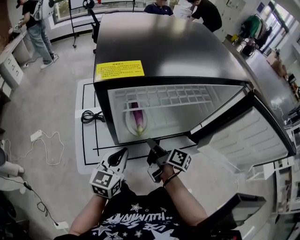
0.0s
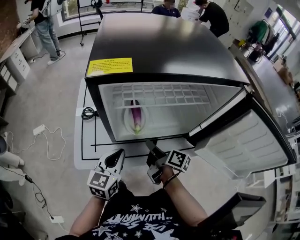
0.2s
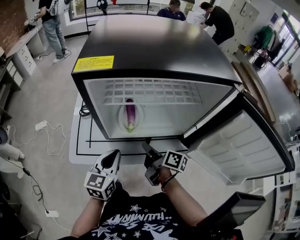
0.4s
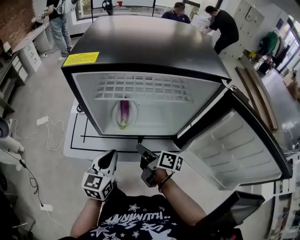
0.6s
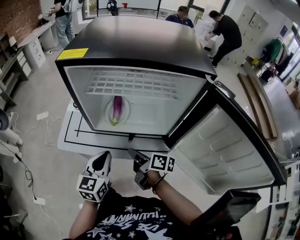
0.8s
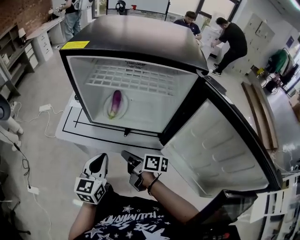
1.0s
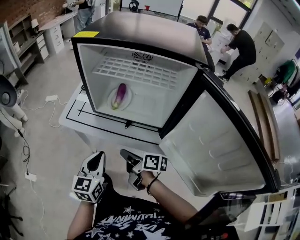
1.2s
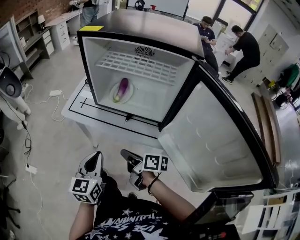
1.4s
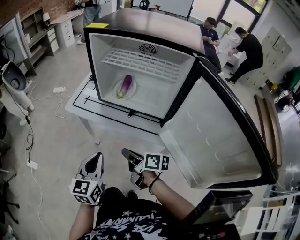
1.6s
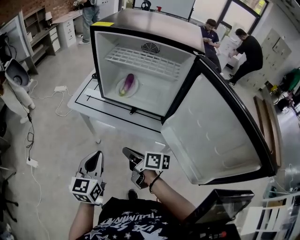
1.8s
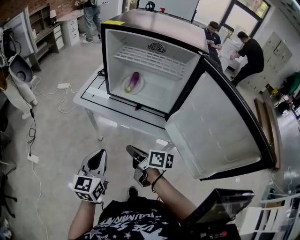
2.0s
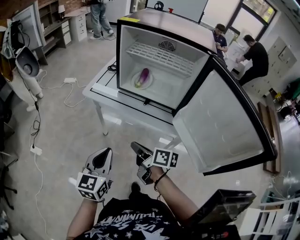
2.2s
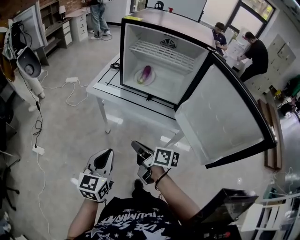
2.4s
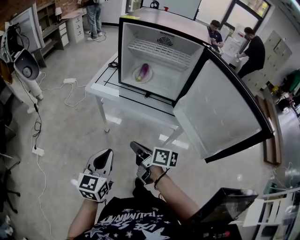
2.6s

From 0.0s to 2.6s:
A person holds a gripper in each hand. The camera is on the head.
From 0.0s to 1.2s: The left gripper ends up roughly 20 cm from where it was, and swivels approximately 40 degrees.
From 1.2s to 2.6s: The left gripper shifts by approximately 25 cm.

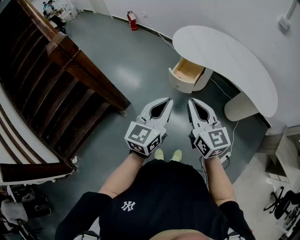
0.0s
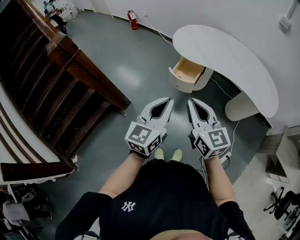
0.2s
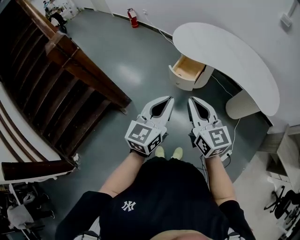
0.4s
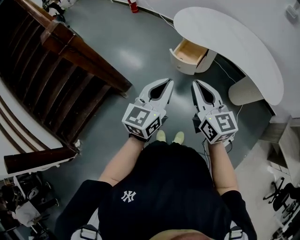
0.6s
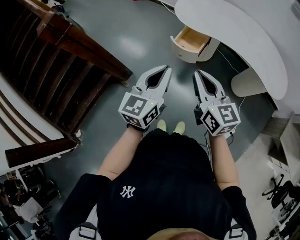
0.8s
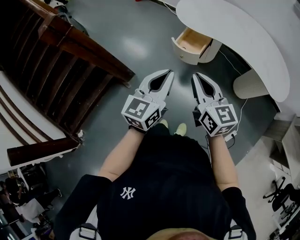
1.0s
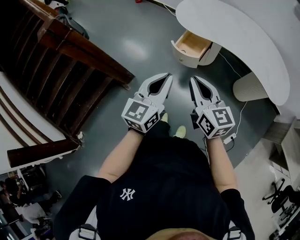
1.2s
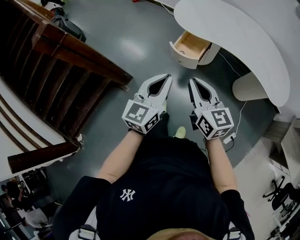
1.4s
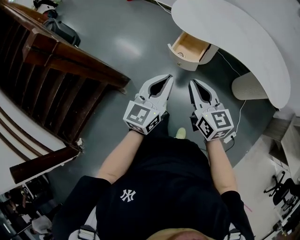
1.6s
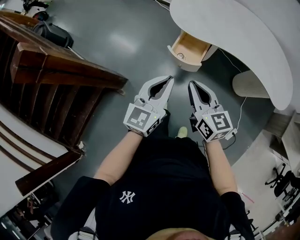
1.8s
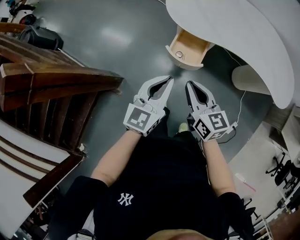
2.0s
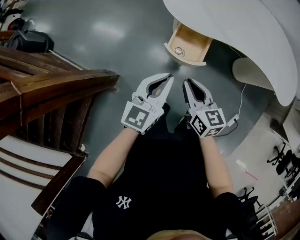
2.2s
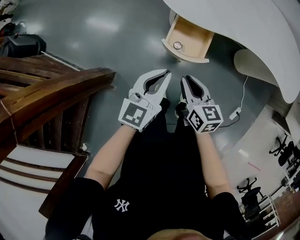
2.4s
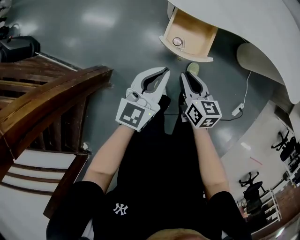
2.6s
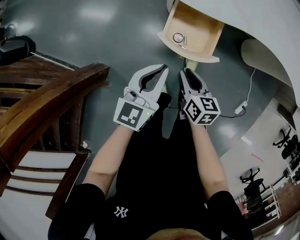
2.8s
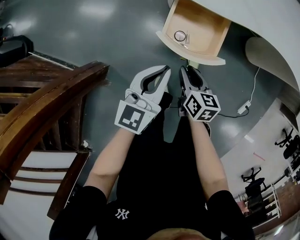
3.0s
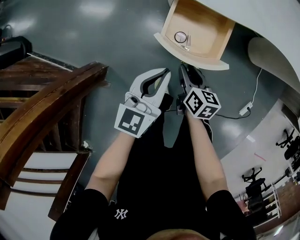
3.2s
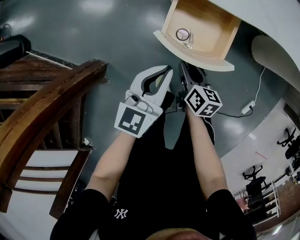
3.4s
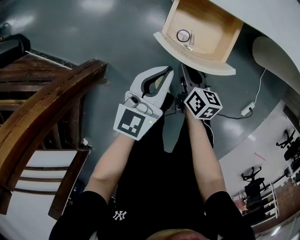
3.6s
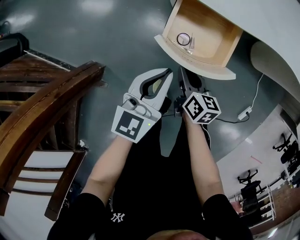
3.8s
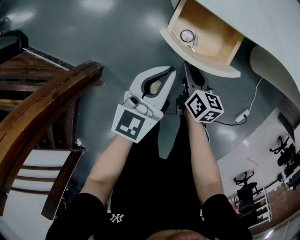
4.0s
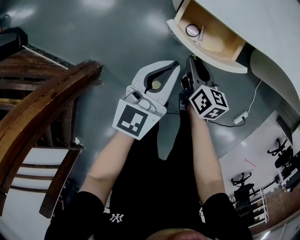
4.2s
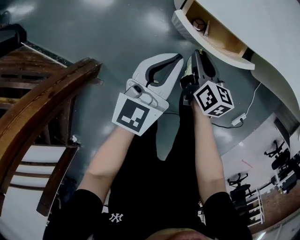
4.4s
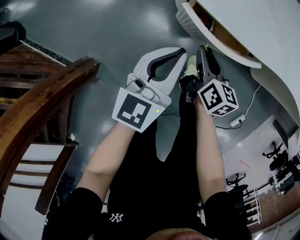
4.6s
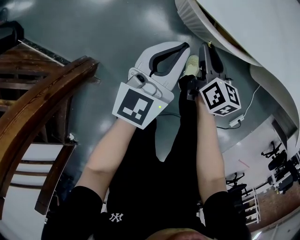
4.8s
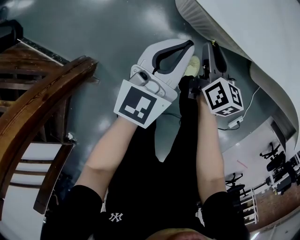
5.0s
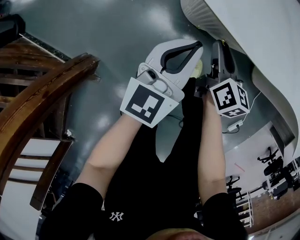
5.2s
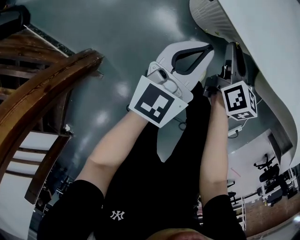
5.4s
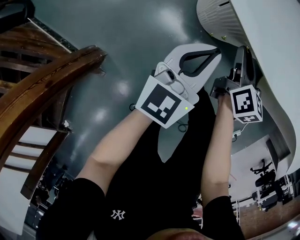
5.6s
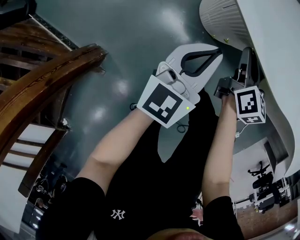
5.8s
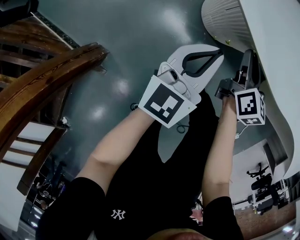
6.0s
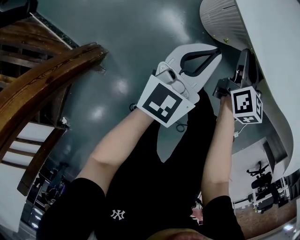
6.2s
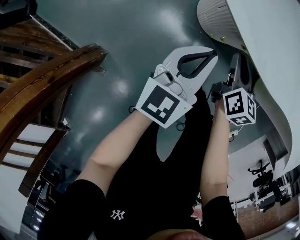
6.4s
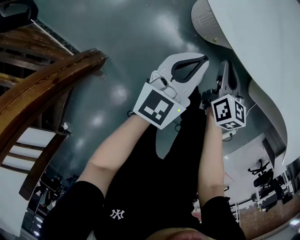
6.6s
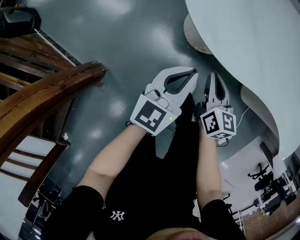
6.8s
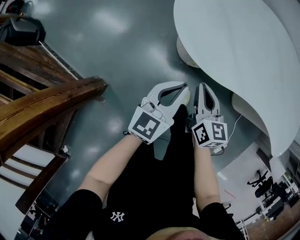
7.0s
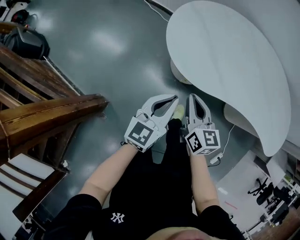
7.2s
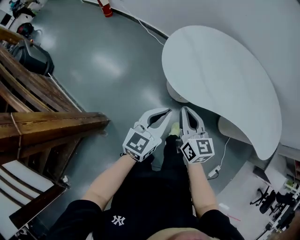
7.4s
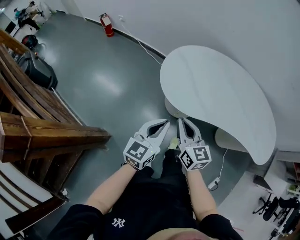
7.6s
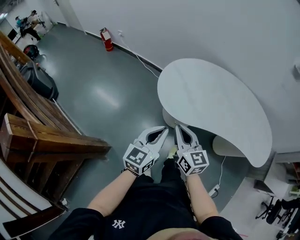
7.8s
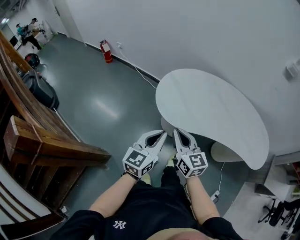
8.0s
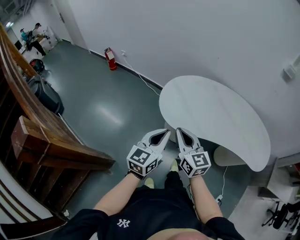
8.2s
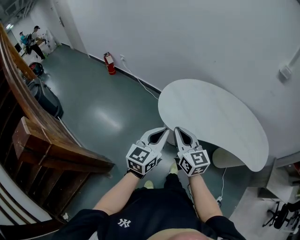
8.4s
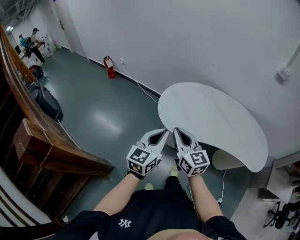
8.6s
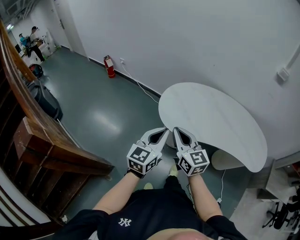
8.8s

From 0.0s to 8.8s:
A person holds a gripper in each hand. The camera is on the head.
From 0.0s to 1.4s: The left gripper goes approximately 10 cm forward and downward, while the right gripper heads downward and forward, covering some 10 cm.
From 1.4s to 3.0s: Both grippers move downward and forward, some 50 cm. The left gripper changes its angle by some 20 degrees, while the right gripper angles its fingers downward, by some 30 degrees, and opens.
From 3.0s to 4.4s: Both grippers travel together forward and downward, some 15 cm.
From 4.4s to 5.8s: The right gripper goes roughly 15 cm forward. Meanwhile the left gripper is displaced forward by roughly 10 cm.
From 5.8s to 7.4s: The left gripper goes about 30 cm upward, while the right gripper travels upward and backward by about 35 cm, changes its angle by approximately 30 degrees, and closes up.
From 7.4s to 8.8s: The grippers both shift upward by approximately 20 cm.

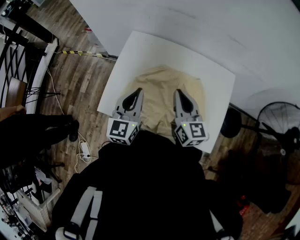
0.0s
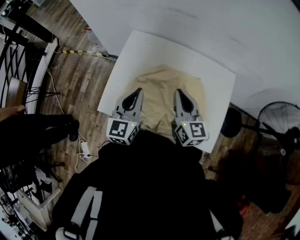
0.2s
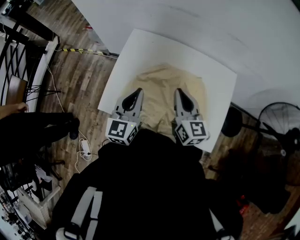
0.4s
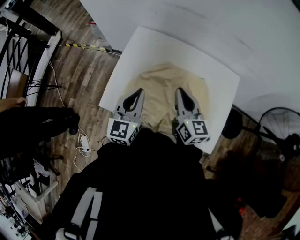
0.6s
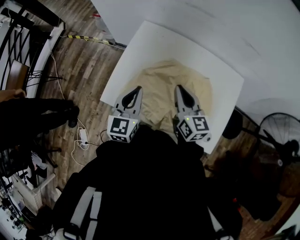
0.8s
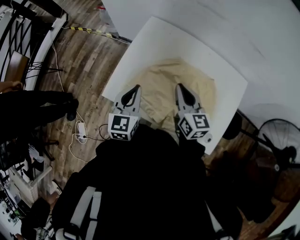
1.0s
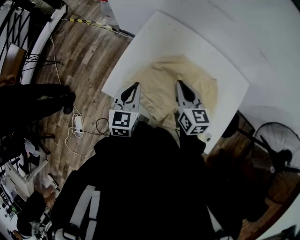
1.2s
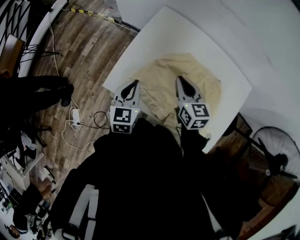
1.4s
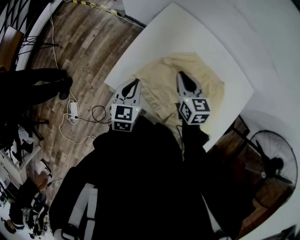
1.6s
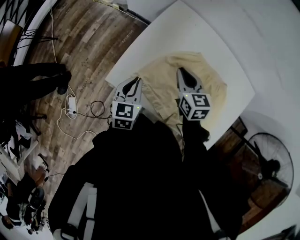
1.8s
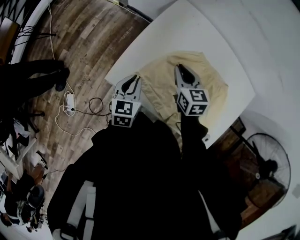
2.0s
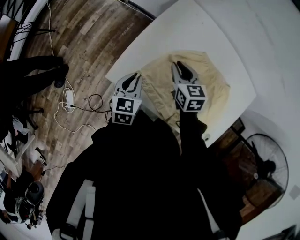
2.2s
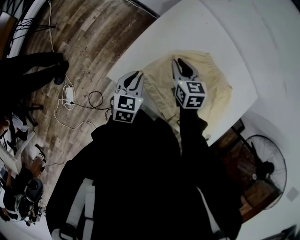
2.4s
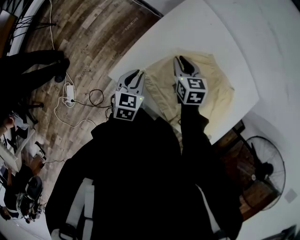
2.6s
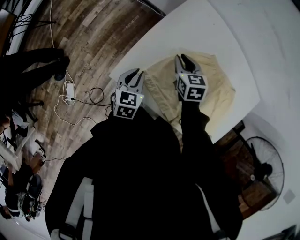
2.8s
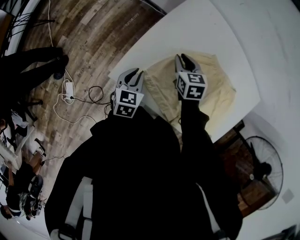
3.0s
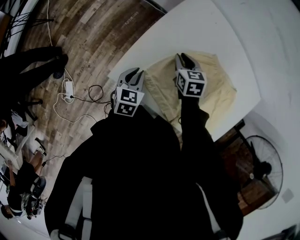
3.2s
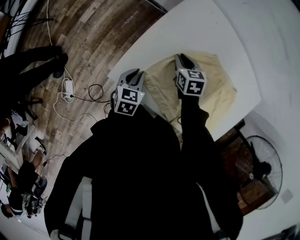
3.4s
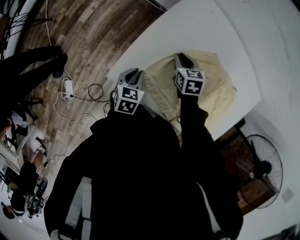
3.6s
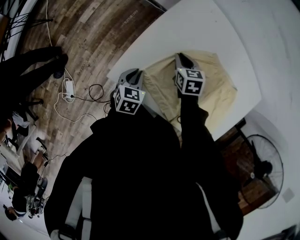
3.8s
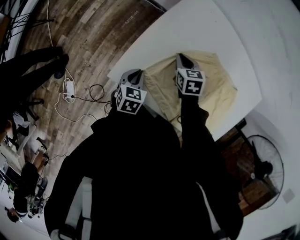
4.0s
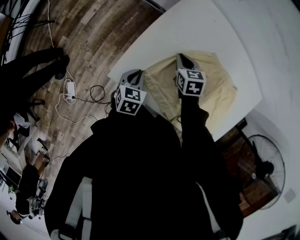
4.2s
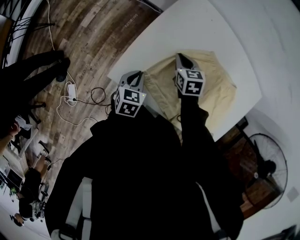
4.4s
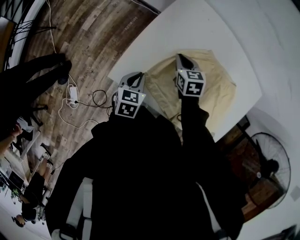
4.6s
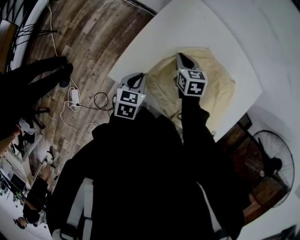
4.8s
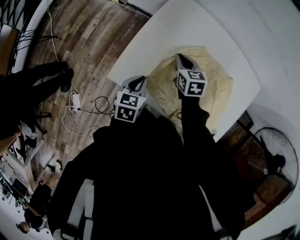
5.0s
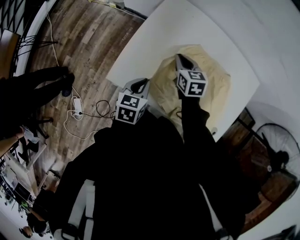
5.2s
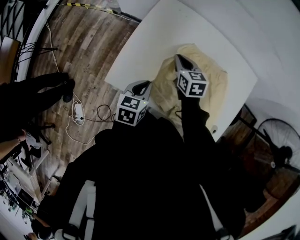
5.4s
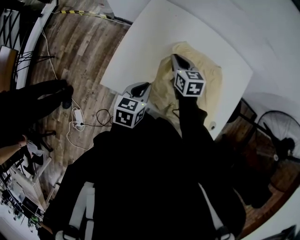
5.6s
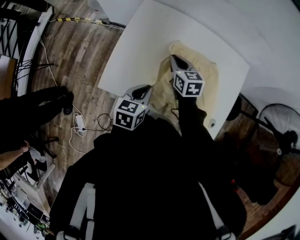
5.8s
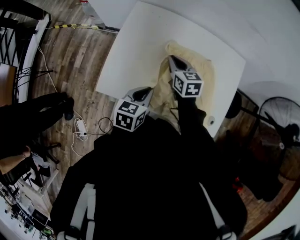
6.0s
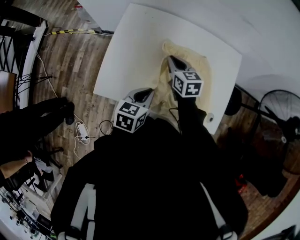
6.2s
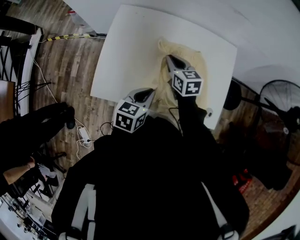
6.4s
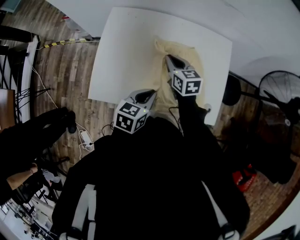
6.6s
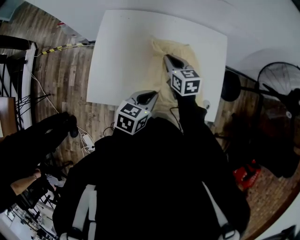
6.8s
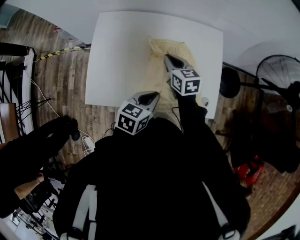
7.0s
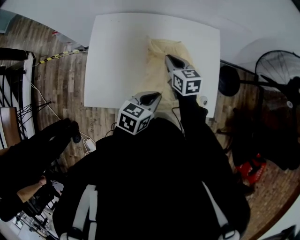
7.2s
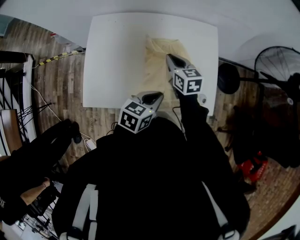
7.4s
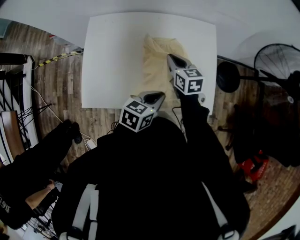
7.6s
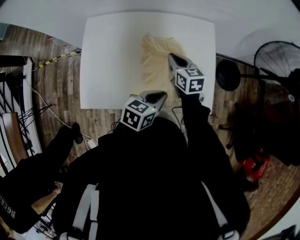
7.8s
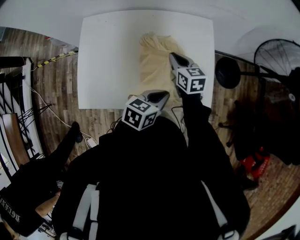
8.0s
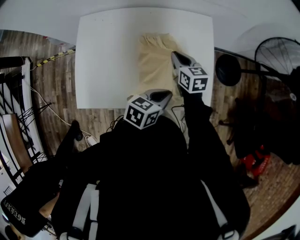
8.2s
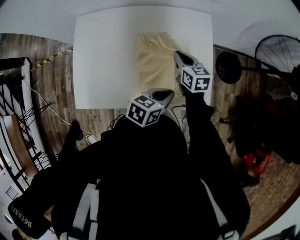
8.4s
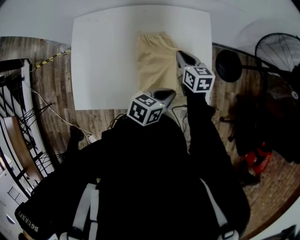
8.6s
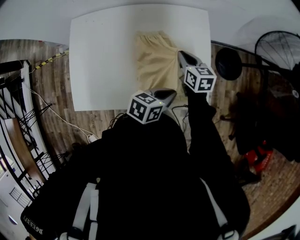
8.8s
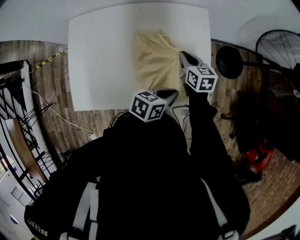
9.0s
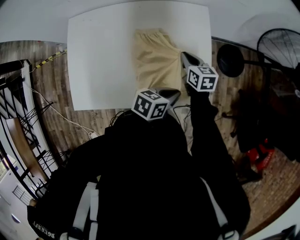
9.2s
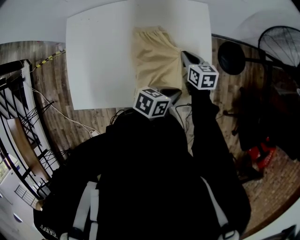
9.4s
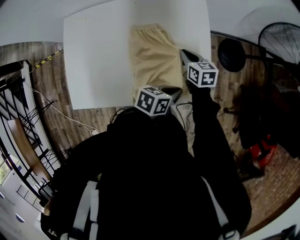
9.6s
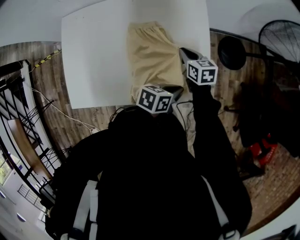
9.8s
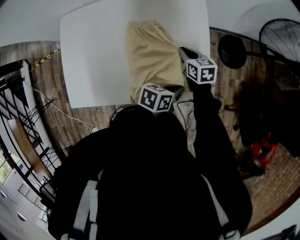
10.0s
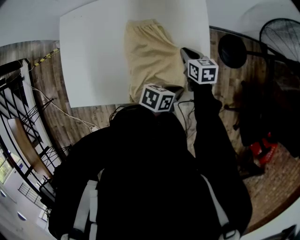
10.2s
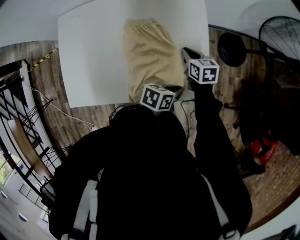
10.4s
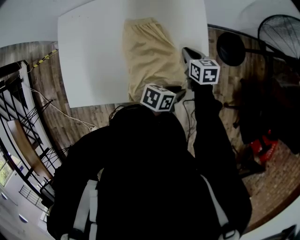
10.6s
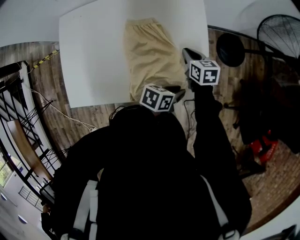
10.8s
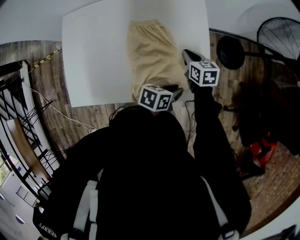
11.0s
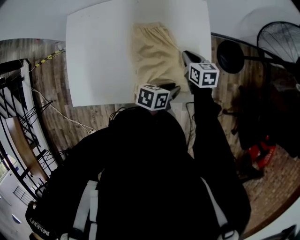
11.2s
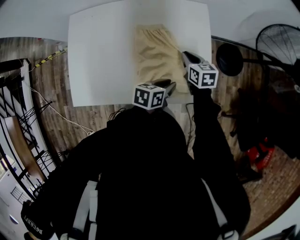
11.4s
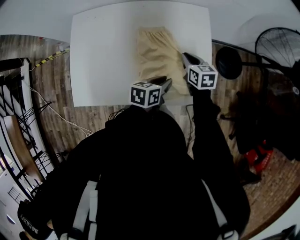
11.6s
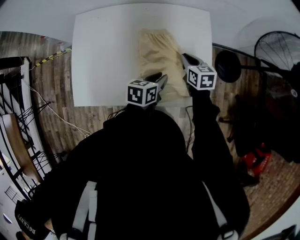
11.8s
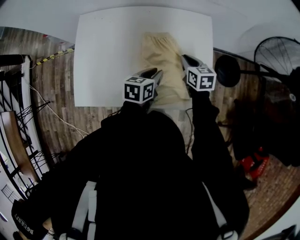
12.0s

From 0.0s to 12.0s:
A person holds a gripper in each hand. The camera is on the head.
From 0.0s to 1.6s: The right gripper goes roughly 20 cm downward, to the left and forward, and changes its angle by about 30 degrees, while the left gripper goes about 20 cm downward and to the left, and changes its angle by some 30 degrees.
From 1.6s to 3.0s: The left gripper is displaced downward by roughly 10 cm. The right gripper is displaced downward, forward and to the left by roughly 15 cm.
From 3.0s to 4.4s: The grippers stay close to where they were, moving slightly.
From 4.4s to 6.0s: The right gripper is displaced upward and to the right by some 20 cm, and rotates roughly 20 degrees. Meanwhile the left gripper travels to the right and upward by roughly 20 cm, and turns by approximately 20 degrees.
From 6.0s to 7.6s: Both grippers travel together to the right, approximately 20 cm. The left gripper rotates some 30 degrees.
From 7.6s to 9.0s: The left gripper heads to the right and forward, covering approximately 15 cm, while the right gripper is displaced to the right, downward and forward by some 15 cm.
From 9.0s to 10.4s: The right gripper shifts about 10 cm downward and to the right, while the left gripper shifts roughly 10 cm to the right and downward.
From 10.4s to 12.0s: The left gripper goes roughly 20 cm to the left, and swivels roughly 30 degrees; the right gripper travels to the left and upward by about 10 cm.
